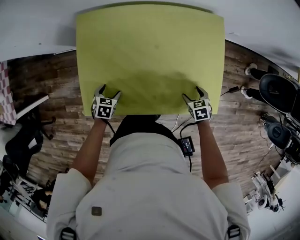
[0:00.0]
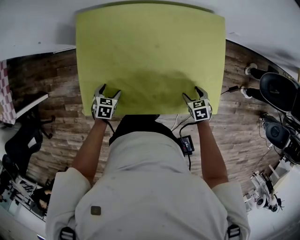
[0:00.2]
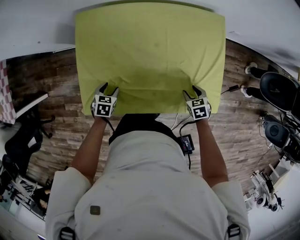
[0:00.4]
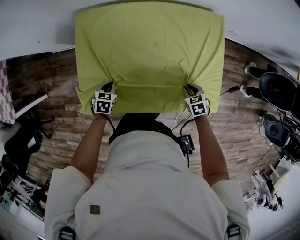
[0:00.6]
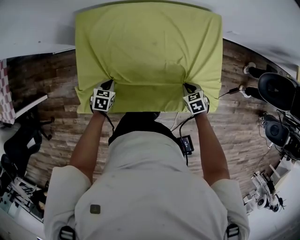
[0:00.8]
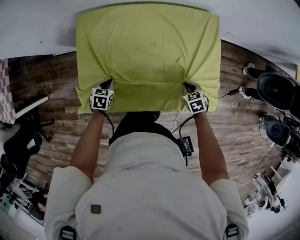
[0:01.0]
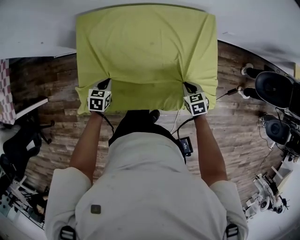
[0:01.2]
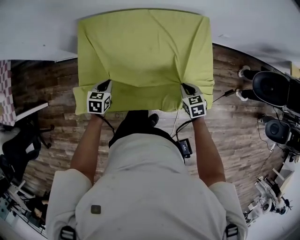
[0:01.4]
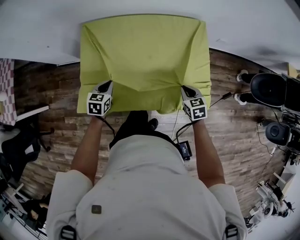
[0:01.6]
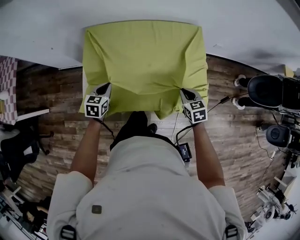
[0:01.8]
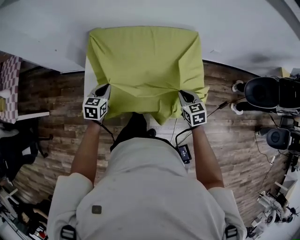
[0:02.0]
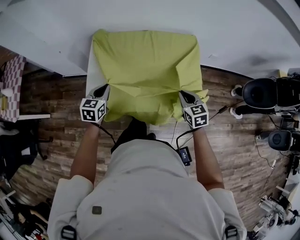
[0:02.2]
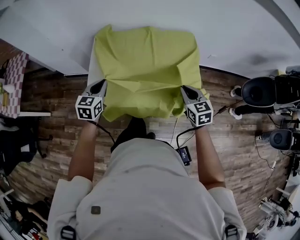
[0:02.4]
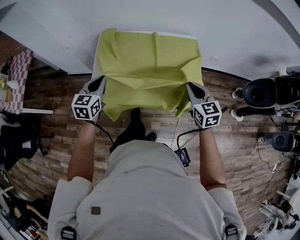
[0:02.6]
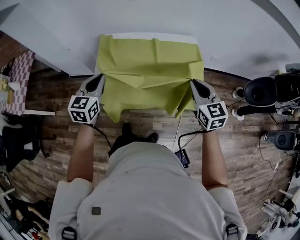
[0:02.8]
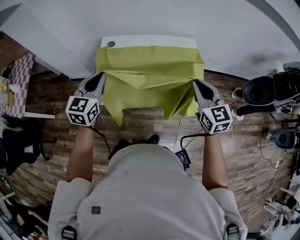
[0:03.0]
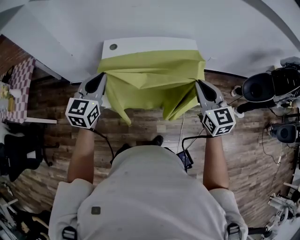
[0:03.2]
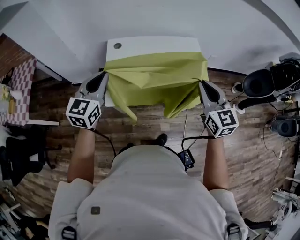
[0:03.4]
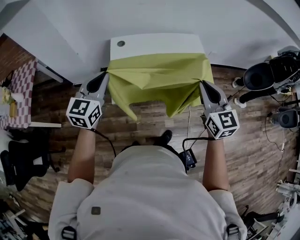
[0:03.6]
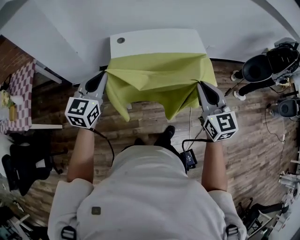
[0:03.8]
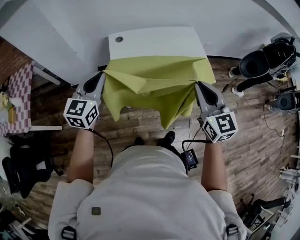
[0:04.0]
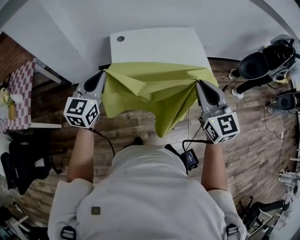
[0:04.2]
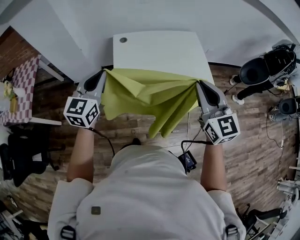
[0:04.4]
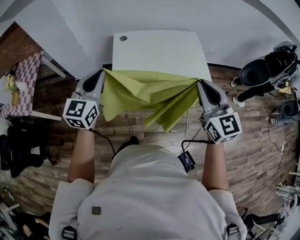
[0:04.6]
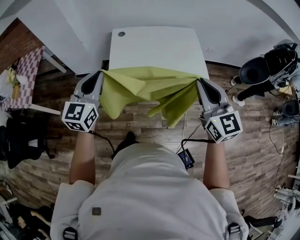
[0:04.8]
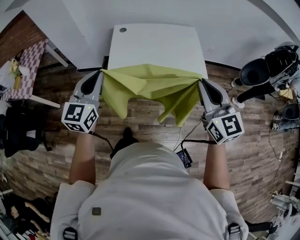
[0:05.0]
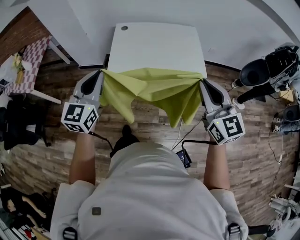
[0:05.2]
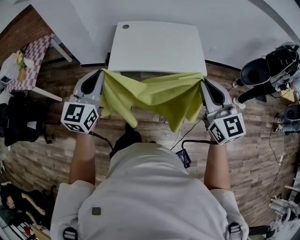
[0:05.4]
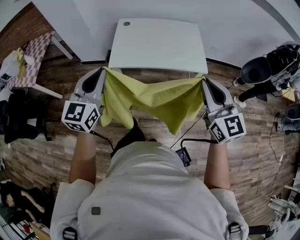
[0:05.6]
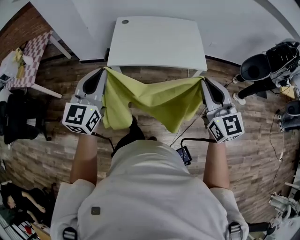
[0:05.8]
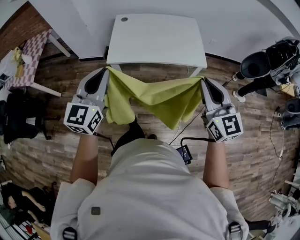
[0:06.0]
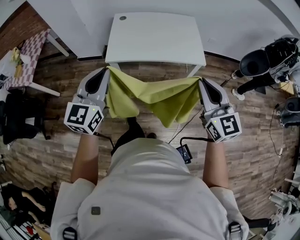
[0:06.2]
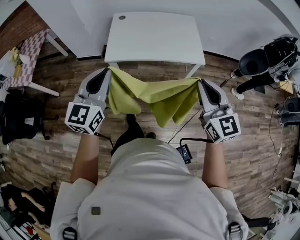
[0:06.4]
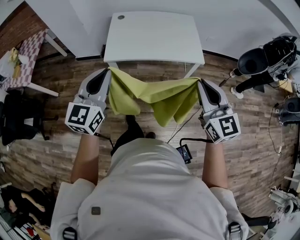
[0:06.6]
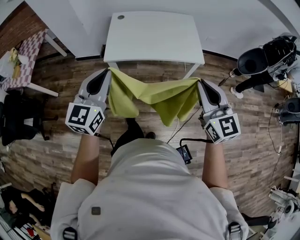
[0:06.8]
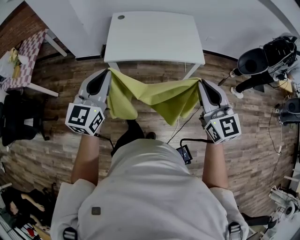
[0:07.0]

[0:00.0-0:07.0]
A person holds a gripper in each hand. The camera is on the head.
0:00.0 to 0:01.4: The grippers both shift upward by about 10 cm. The left gripper closes its fingers. Meanwhile the right gripper closes its fingers.
0:01.4 to 0:02.8: Both grippers move upward, roughly 30 cm. The left gripper angles its fingers upward, by roughly 30 degrees, while the right gripper tilts its fingers approximately 30 degrees upward.
0:02.8 to 0:04.2: The left gripper goes approximately 20 cm to the left, backward and upward. Meanwhile the right gripper shifts approximately 30 cm backward, to the left and upward.
0:04.2 to 0:05.6: Both grippers travel together backward and to the right, some 25 cm.
0:05.6 to 0:07.0: There are only small adjustments of the grippers.

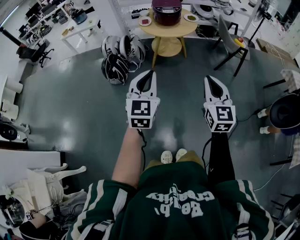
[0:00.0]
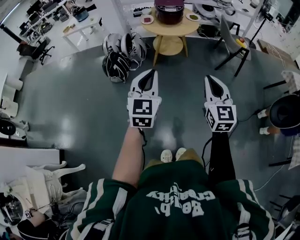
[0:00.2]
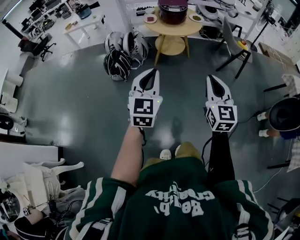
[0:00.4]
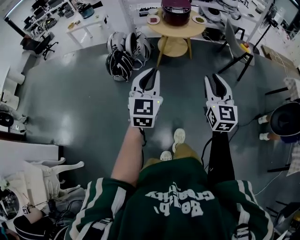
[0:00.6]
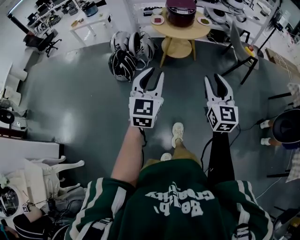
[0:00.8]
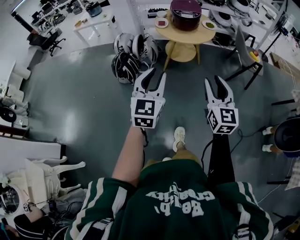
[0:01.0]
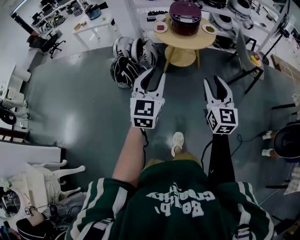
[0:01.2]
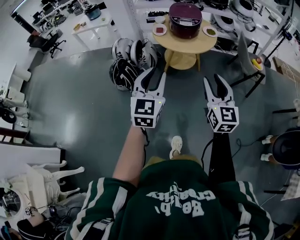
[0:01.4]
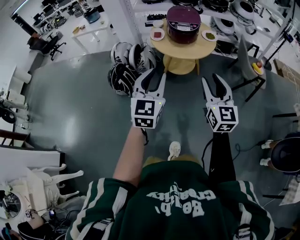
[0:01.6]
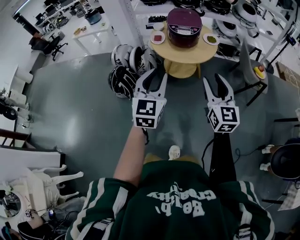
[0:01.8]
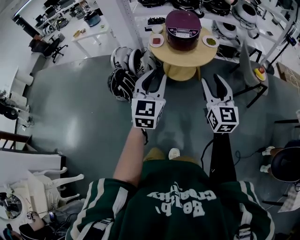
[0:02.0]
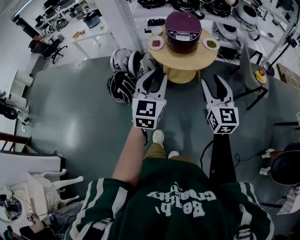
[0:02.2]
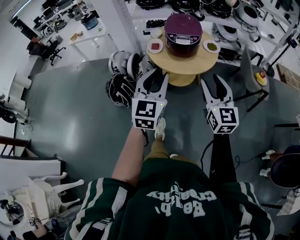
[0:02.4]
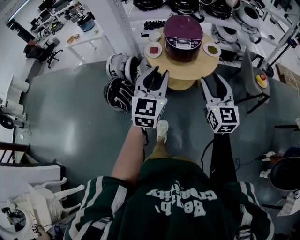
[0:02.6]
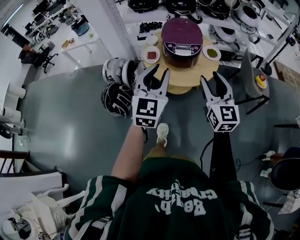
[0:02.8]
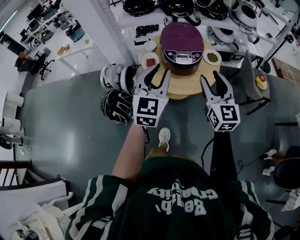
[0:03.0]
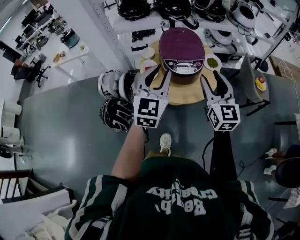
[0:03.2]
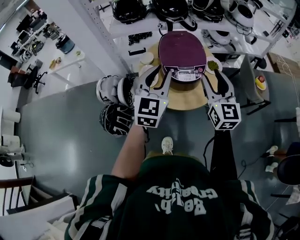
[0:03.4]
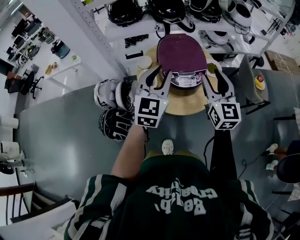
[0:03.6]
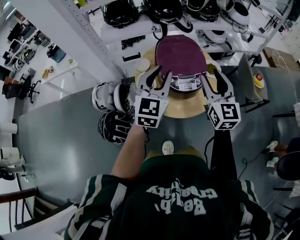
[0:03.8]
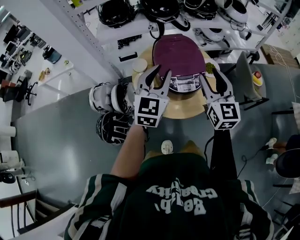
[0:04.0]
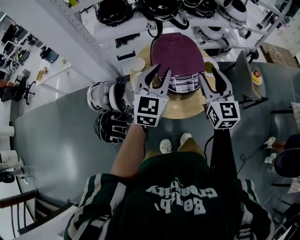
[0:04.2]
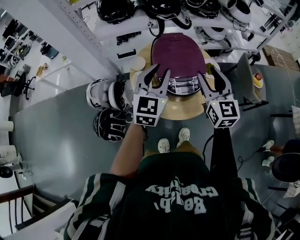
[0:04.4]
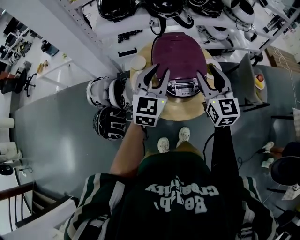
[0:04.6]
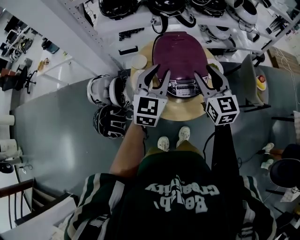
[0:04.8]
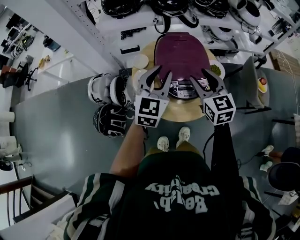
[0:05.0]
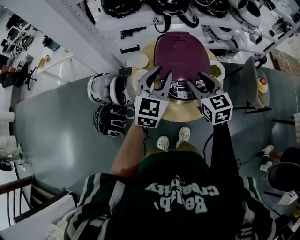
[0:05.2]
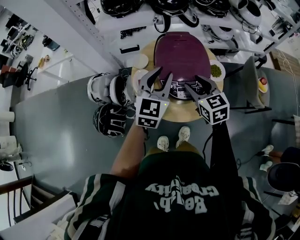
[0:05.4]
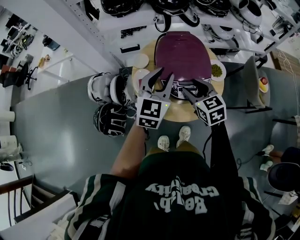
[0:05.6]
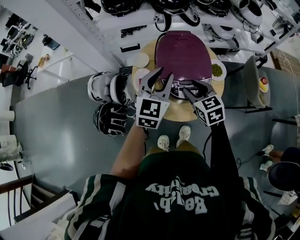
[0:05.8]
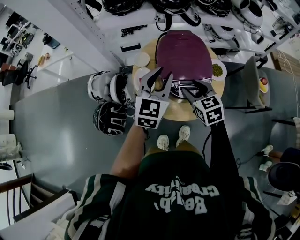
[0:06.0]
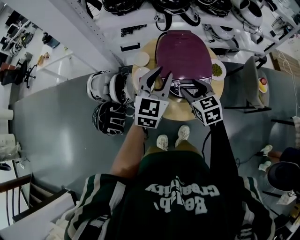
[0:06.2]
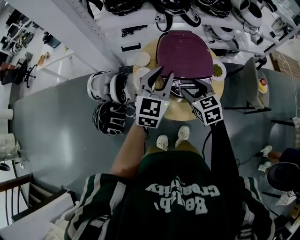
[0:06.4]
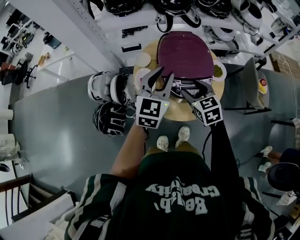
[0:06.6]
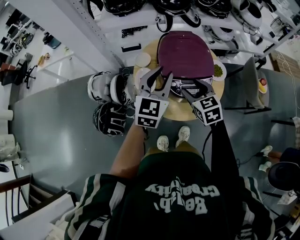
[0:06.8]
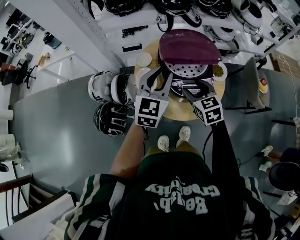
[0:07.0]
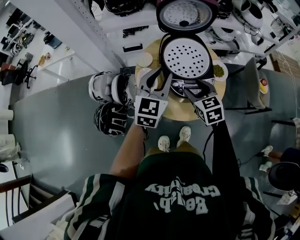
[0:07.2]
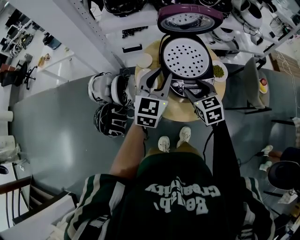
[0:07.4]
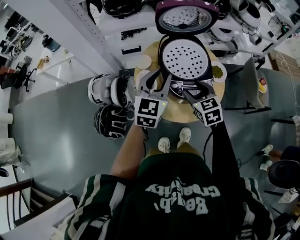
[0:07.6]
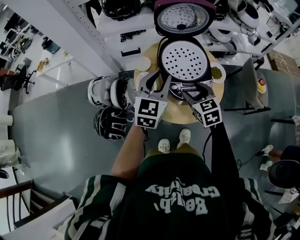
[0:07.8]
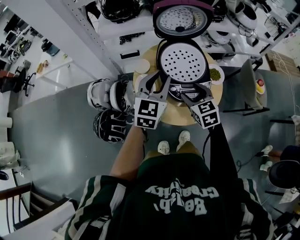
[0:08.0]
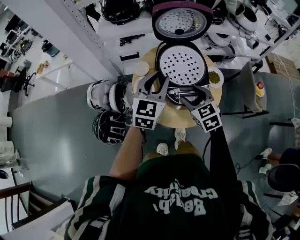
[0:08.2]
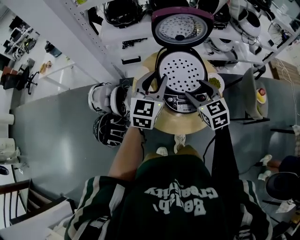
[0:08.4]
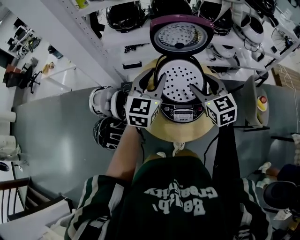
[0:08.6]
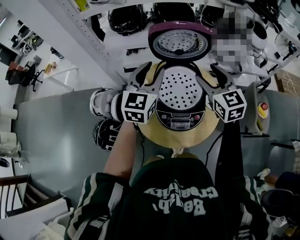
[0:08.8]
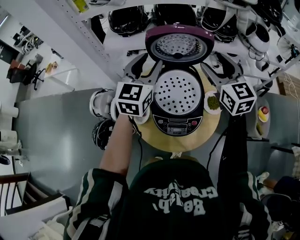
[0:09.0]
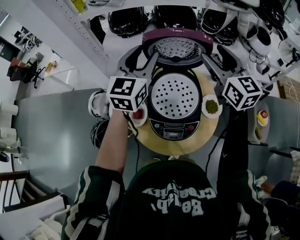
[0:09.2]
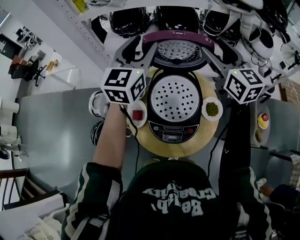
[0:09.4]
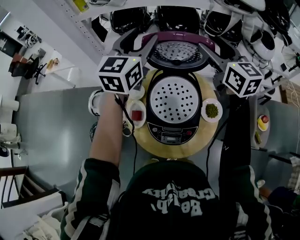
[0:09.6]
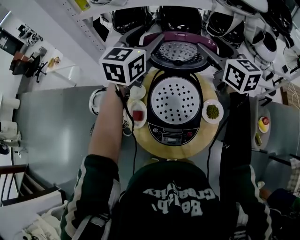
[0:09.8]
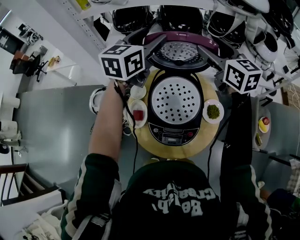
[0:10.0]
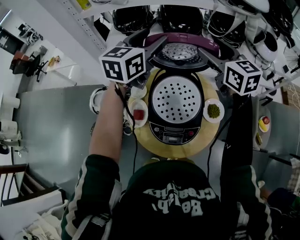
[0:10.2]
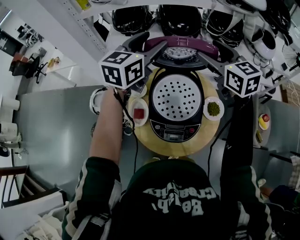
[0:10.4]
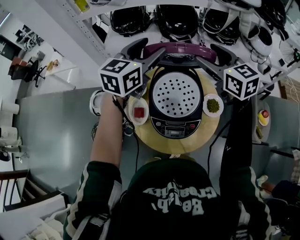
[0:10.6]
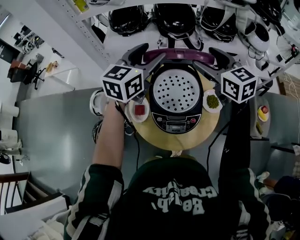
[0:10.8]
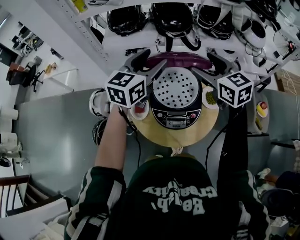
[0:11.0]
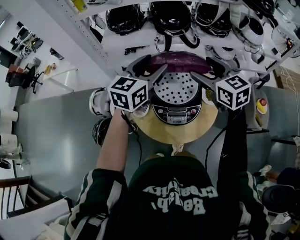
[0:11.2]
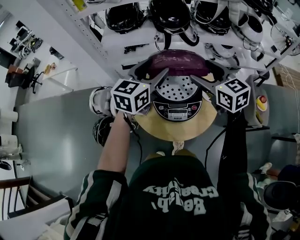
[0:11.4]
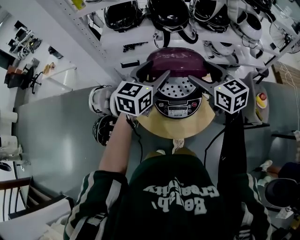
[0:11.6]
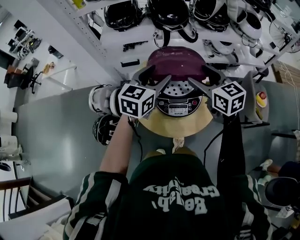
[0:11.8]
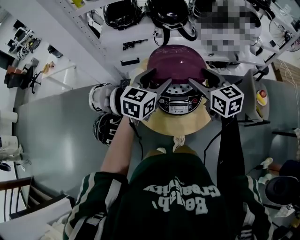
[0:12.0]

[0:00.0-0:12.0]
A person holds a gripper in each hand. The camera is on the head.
0:00.0 to 0:01.6: Both grippers travel together forward, approximately 25 cm. The left gripper opens up. The right gripper opens.
0:01.6 to 0:03.0: The two grippers go roughly 35 cm forward.
0:03.0 to 0:04.4: The two grippers go about 20 cm forward.
0:04.4 to 0:06.0: The right gripper goes about 15 cm downward and to the left, and changes its angle by about 30 degrees.
0:06.0 to 0:07.6: There are only small adjustments of the grippers.
0:07.6 to 0:09.0: The right gripper heads upward, forward and to the right, covering some 30 cm, and changes its angle by approximately 30 degrees. The left gripper goes some 20 cm forward and upward.
0:09.0 to 0:10.4: Both grippers move forward, about 5 cm.
0:10.4 to 0:12.0: Both grippers travel together backward and downward, some 20 cm.

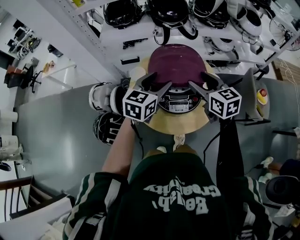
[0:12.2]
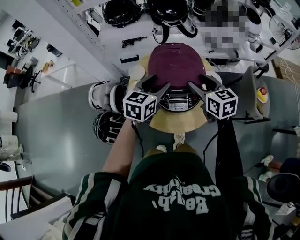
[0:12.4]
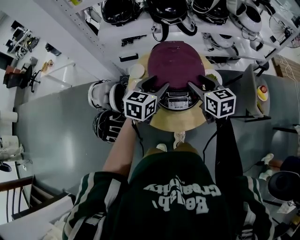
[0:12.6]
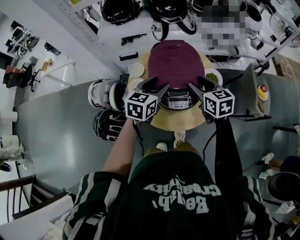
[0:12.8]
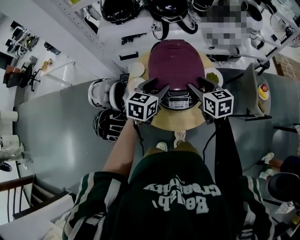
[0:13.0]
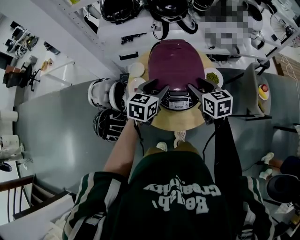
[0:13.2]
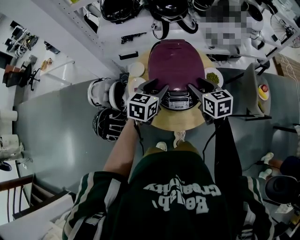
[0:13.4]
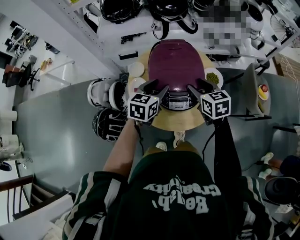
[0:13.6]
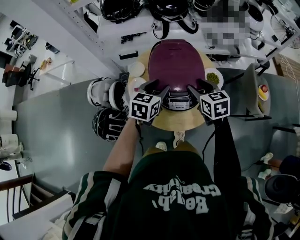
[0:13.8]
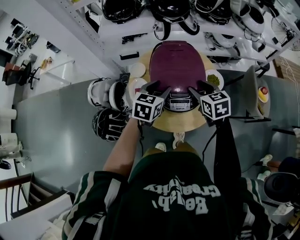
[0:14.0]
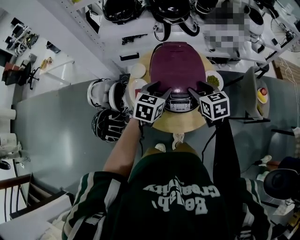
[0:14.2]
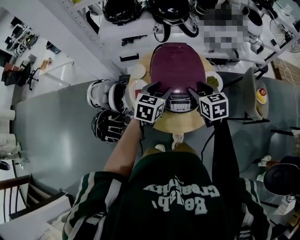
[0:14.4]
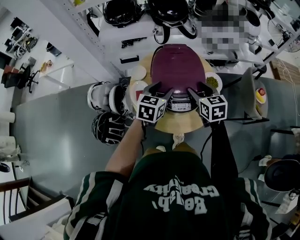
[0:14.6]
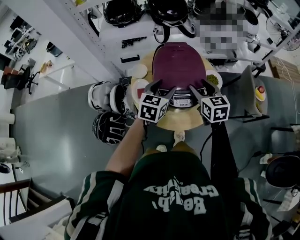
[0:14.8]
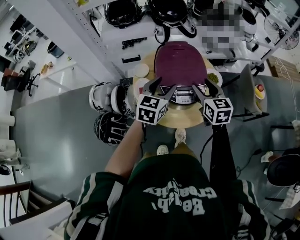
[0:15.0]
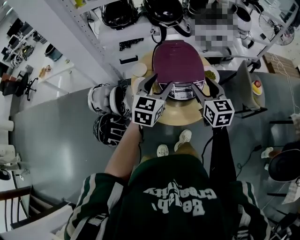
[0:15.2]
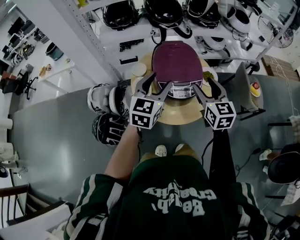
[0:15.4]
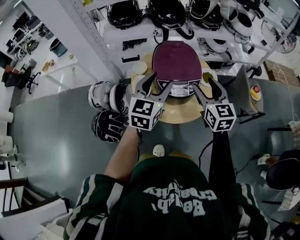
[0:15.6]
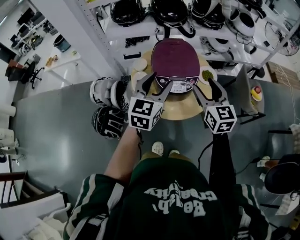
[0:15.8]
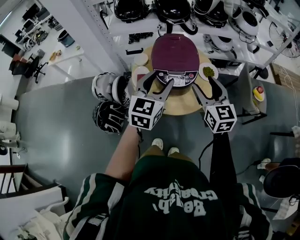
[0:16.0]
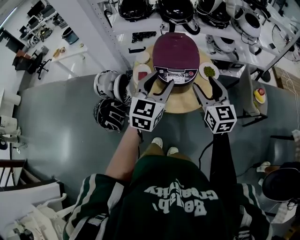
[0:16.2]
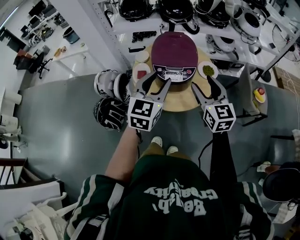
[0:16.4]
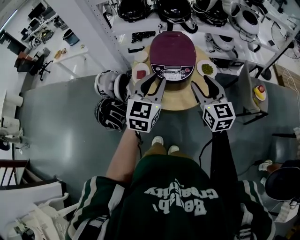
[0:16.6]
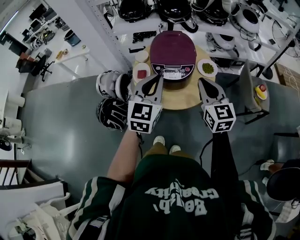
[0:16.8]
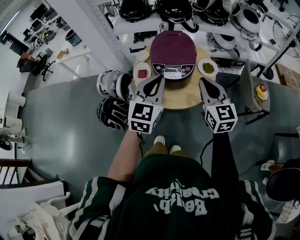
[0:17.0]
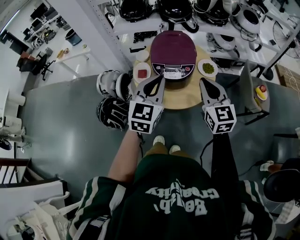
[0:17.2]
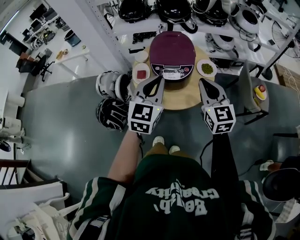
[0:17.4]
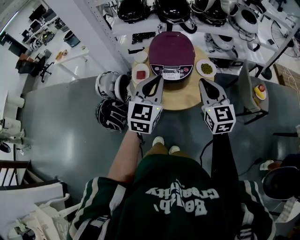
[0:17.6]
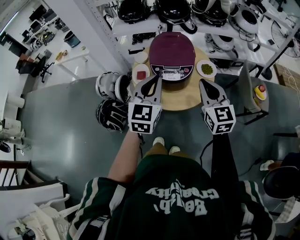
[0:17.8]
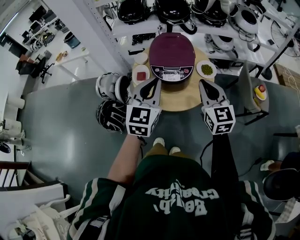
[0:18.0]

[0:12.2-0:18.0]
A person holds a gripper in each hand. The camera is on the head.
0:12.2 to 0:13.6: The two grippers go roughly 5 cm downward.
0:13.6 to 0:15.0: The left gripper ends up roughly 5 cm from where it was, while the right gripper changes place by about 5 cm.
0:15.0 to 0:16.6: The right gripper moves backward, upward and to the right, roughly 15 cm. The left gripper is displaced backward and upward by some 20 cm, and closes its fingers.
0:16.6 to 0:18.0: The left gripper closes; the right gripper closes its fingers.
